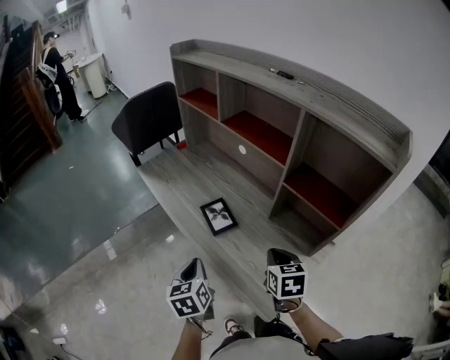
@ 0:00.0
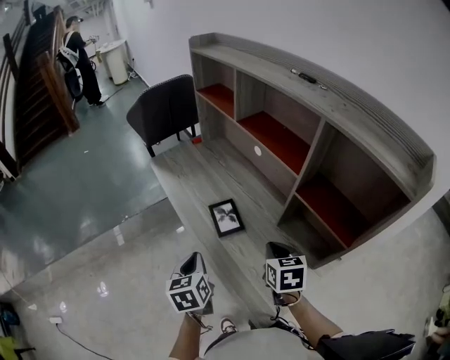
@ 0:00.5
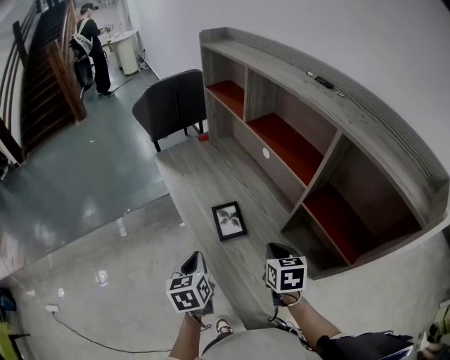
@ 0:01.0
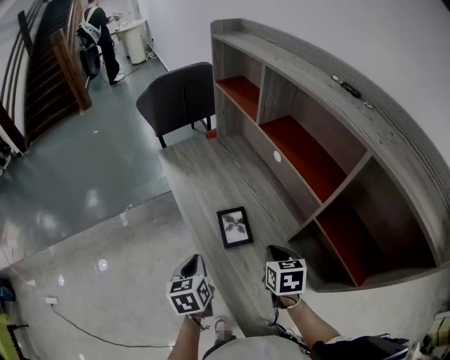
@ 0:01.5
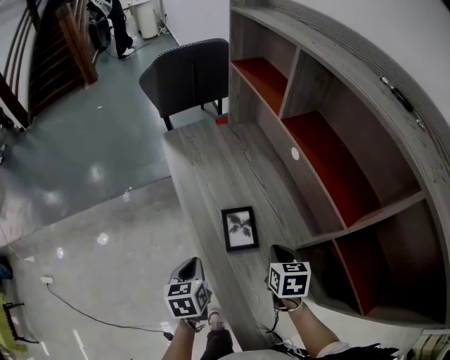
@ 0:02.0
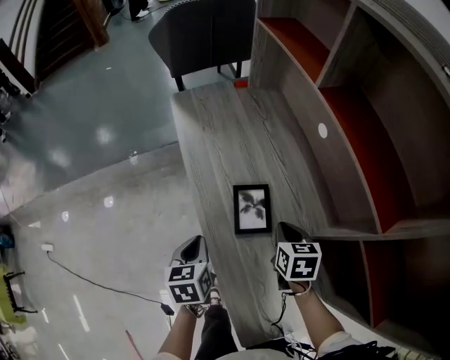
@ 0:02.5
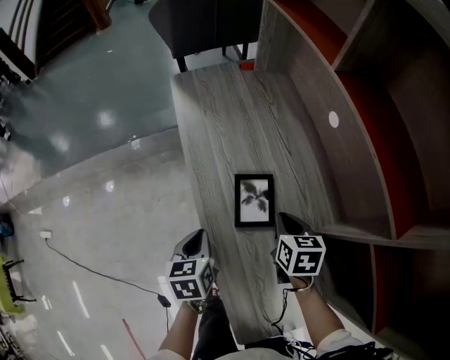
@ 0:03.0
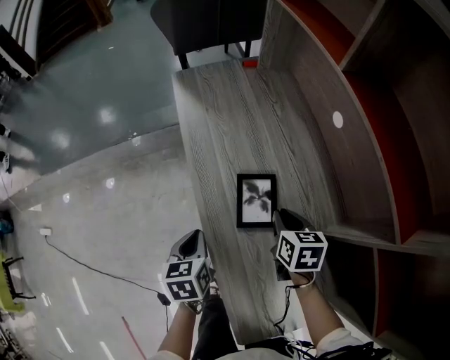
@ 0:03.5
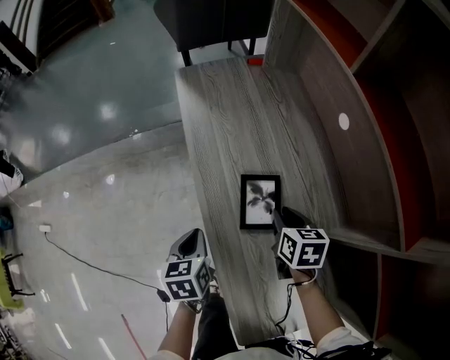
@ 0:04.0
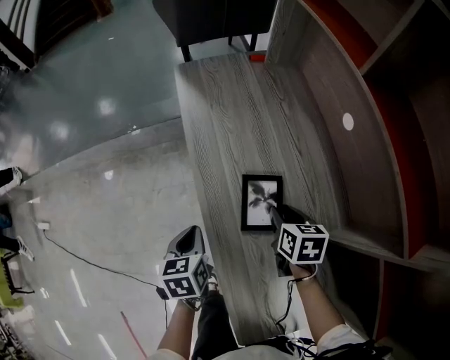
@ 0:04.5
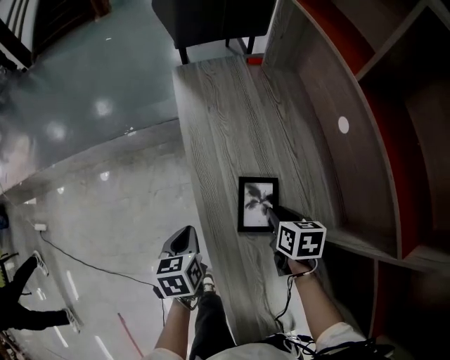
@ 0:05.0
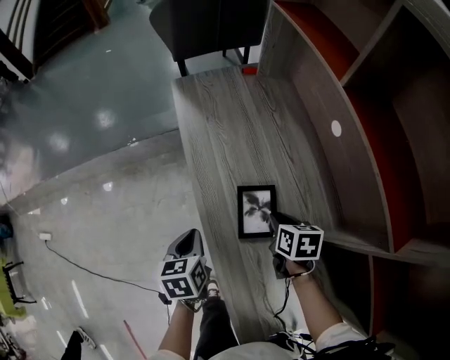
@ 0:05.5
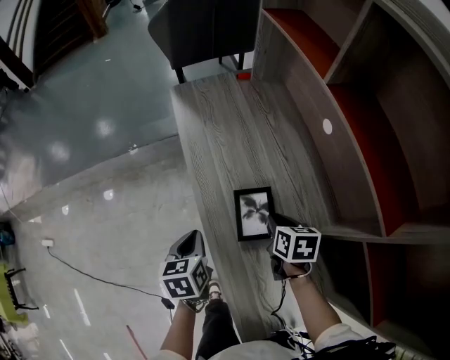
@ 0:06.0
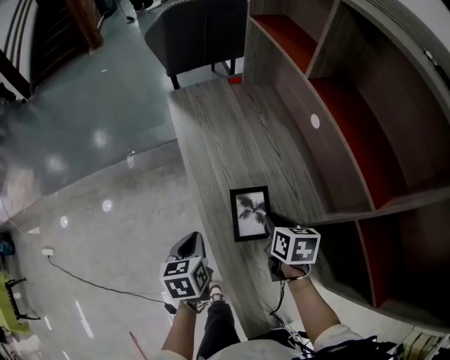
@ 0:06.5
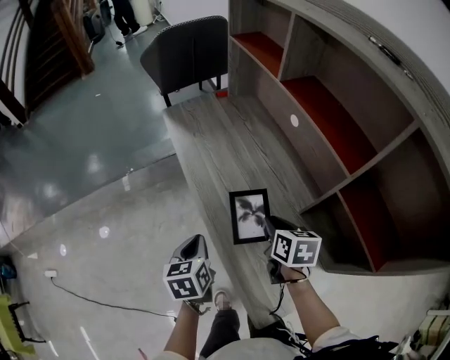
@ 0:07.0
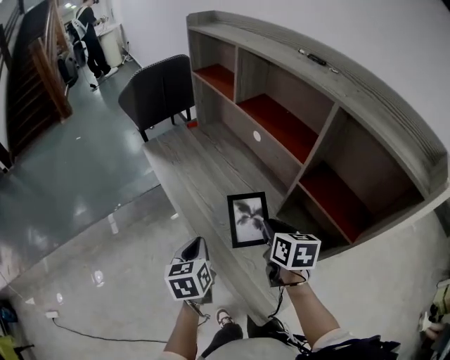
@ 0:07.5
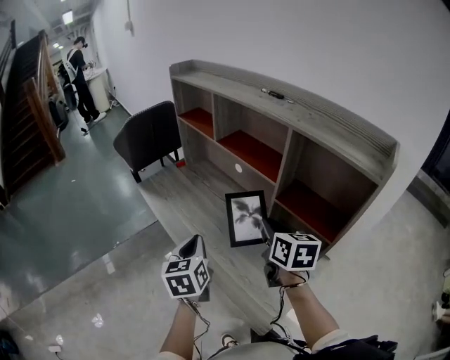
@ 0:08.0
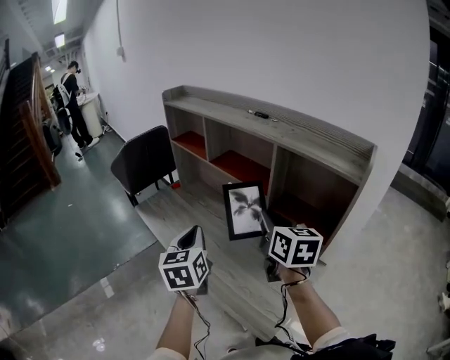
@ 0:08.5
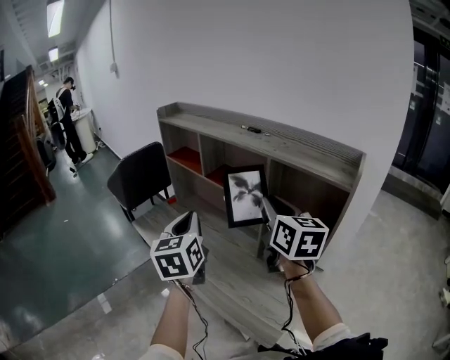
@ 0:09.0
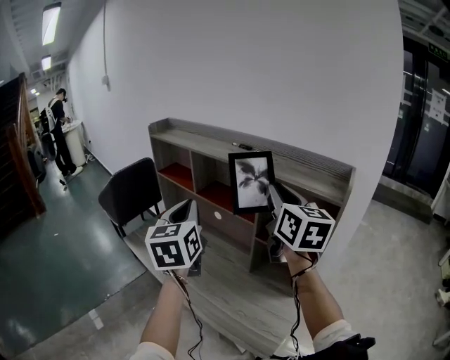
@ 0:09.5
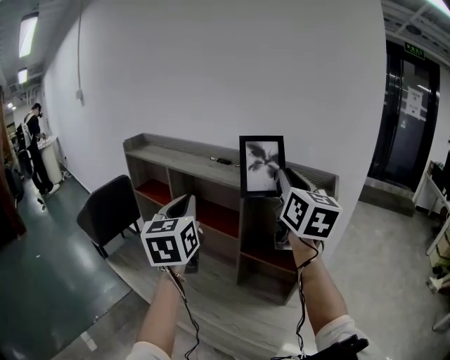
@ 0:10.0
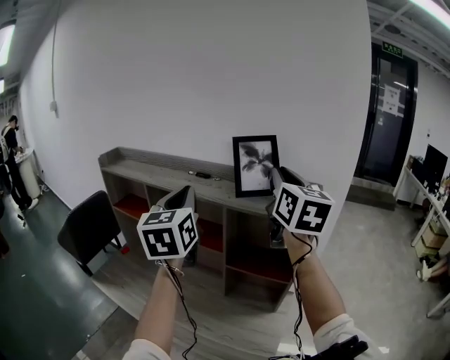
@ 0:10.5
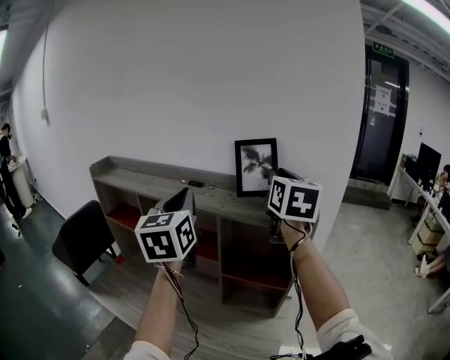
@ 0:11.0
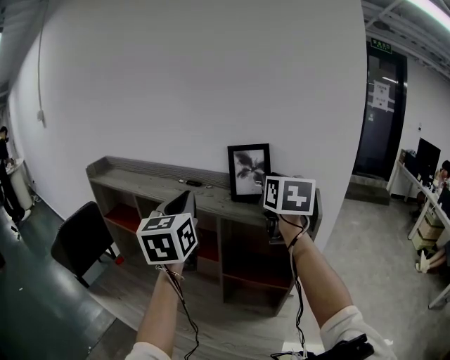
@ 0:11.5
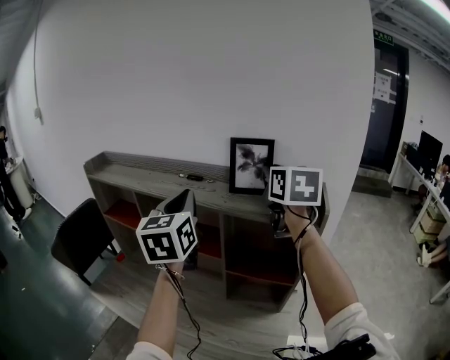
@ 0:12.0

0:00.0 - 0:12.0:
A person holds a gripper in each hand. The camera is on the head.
0:00.0 - 0:02.0: The left gripper moves forward and downward, roughly 15 cm, while the right gripper goes roughly 20 cm forward and downward.
0:02.0 - 0:04.0: The right gripper travels downward and forward by roughly 10 cm. The left gripper is displaced downward by roughly 5 cm.
0:04.0 - 0:06.0: The grippers stay close to where they were, moving slightly.
0:06.0 - 0:08.0: Both grippers move upward, roughly 25 cm. The right gripper rotates some 40 degrees. Meanwhile the left gripper rotates approximately 40 degrees.
0:08.0 - 0:10.0: The left gripper travels upward and forward by approximately 30 cm, and swivels about 30 degrees; the right gripper moves upward, roughly 35 cm, and points its fingers approximately 30 degrees further upward.
0:10.0 - 0:12.0: The two grippers go roughly 10 cm forward. The right gripper changes its angle by approximately 20 degrees.

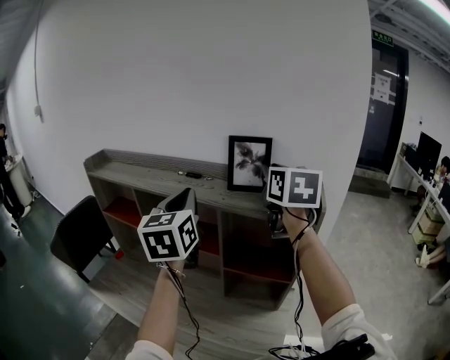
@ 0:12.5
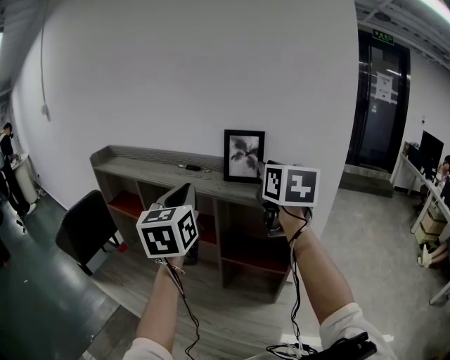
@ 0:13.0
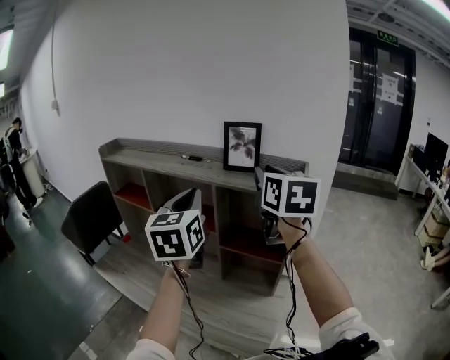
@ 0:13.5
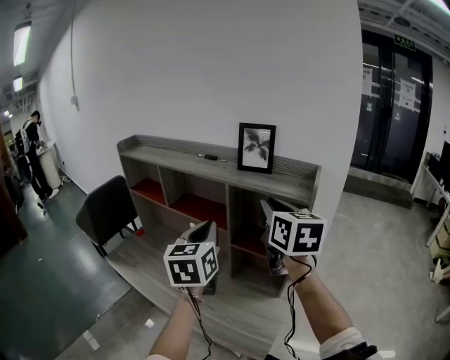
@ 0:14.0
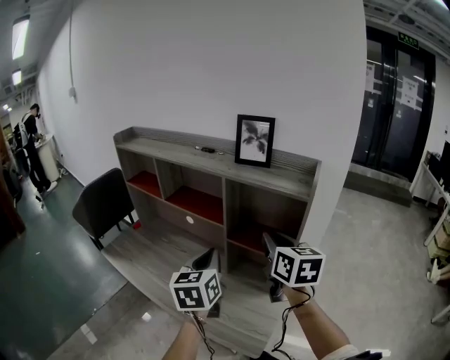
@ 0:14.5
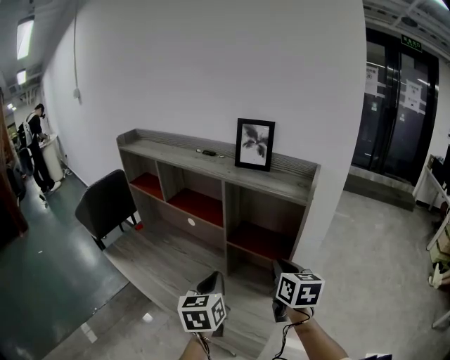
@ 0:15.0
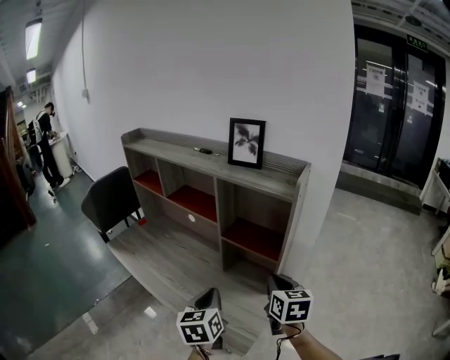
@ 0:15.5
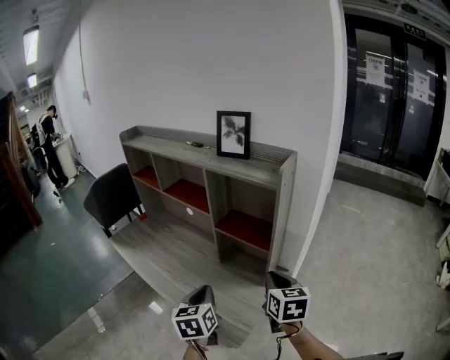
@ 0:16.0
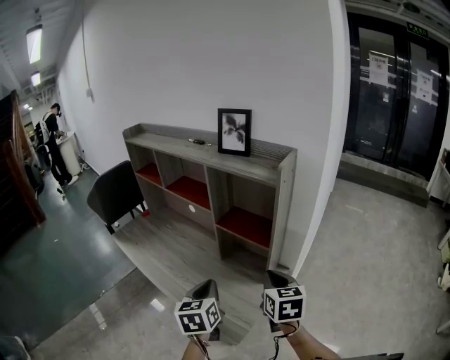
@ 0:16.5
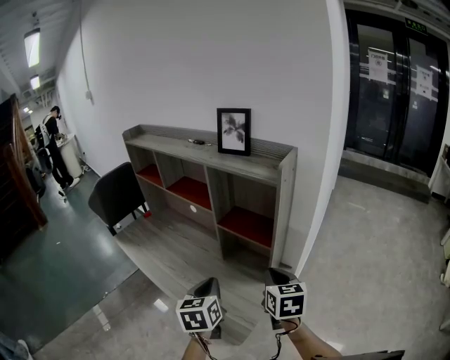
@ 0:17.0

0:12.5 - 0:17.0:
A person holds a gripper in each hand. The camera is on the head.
0:12.5 - 0:14.5: The grippers both shift downward and backward by approximately 25 cm.
0:14.5 - 0:17.0: The left gripper travels backward, downward and to the right by some 15 cm; the right gripper shifts approximately 20 cm downward, backward and to the right.

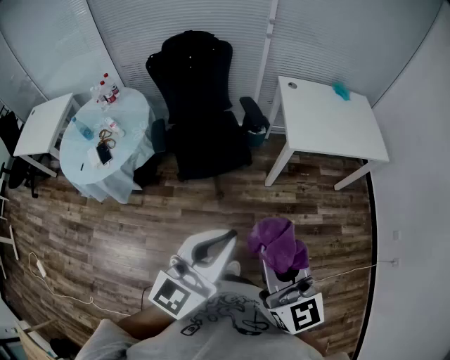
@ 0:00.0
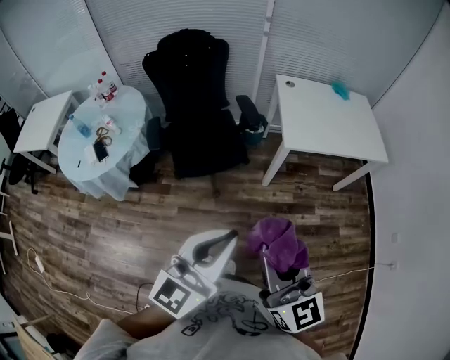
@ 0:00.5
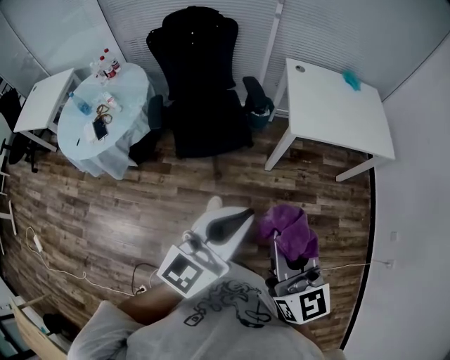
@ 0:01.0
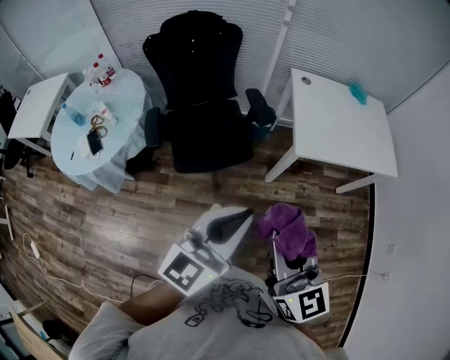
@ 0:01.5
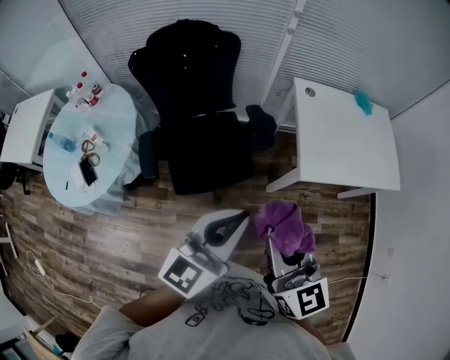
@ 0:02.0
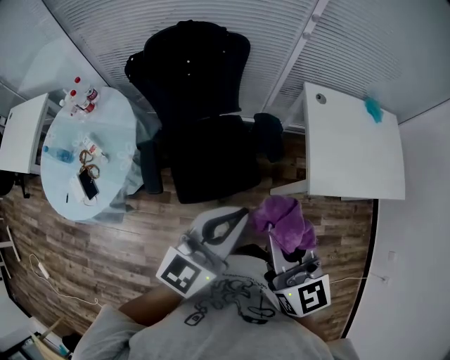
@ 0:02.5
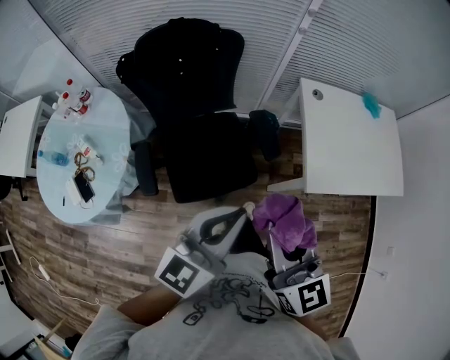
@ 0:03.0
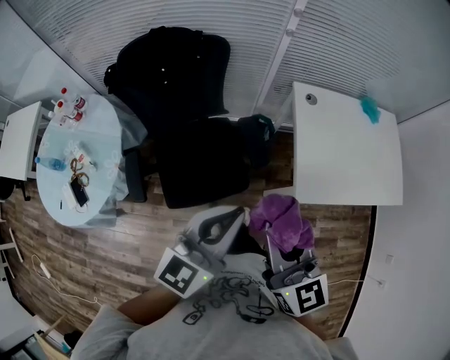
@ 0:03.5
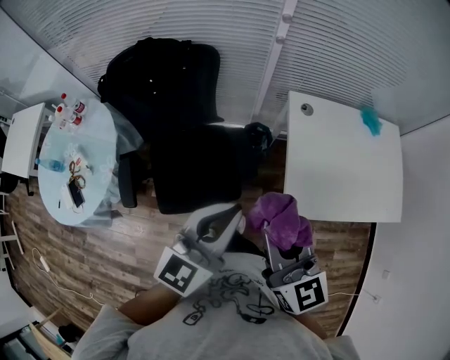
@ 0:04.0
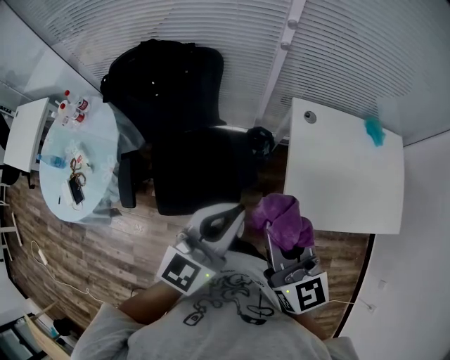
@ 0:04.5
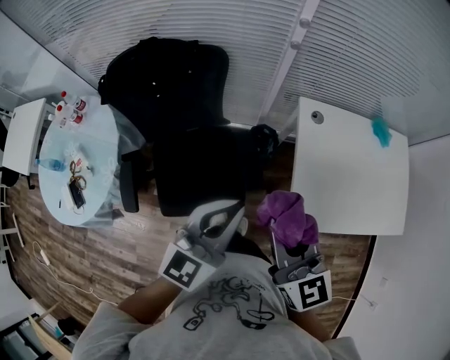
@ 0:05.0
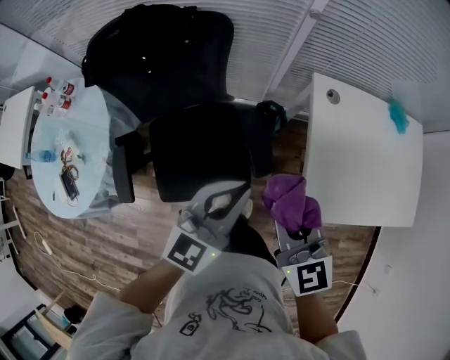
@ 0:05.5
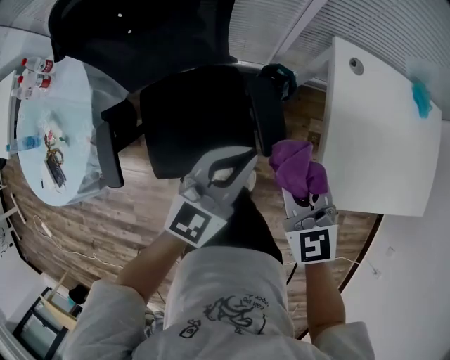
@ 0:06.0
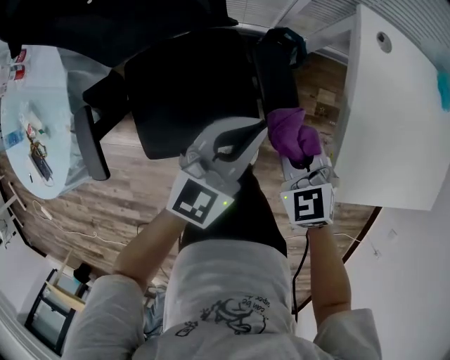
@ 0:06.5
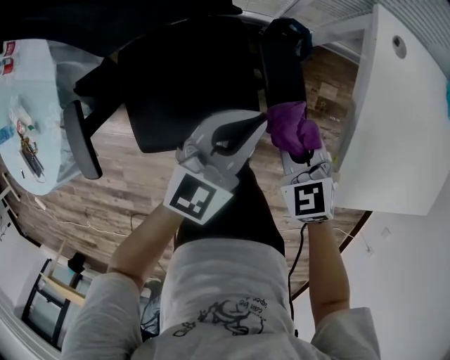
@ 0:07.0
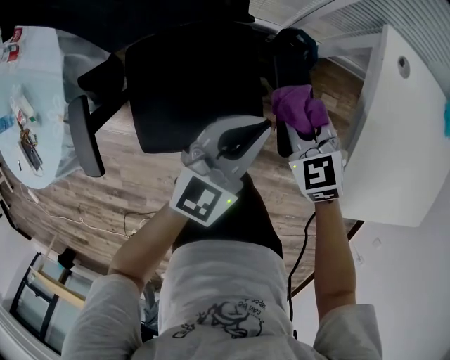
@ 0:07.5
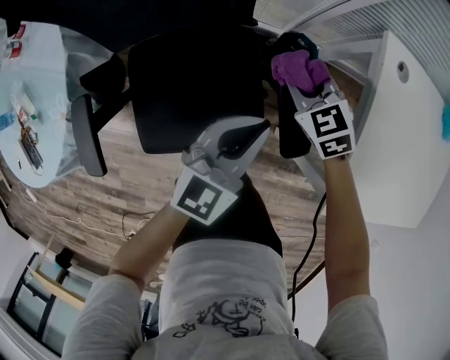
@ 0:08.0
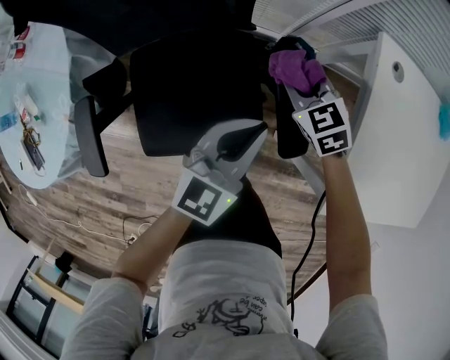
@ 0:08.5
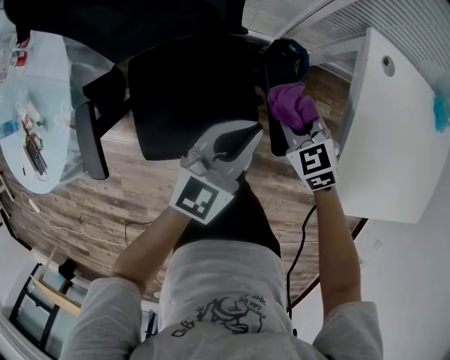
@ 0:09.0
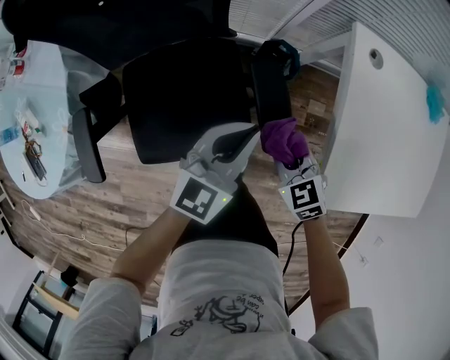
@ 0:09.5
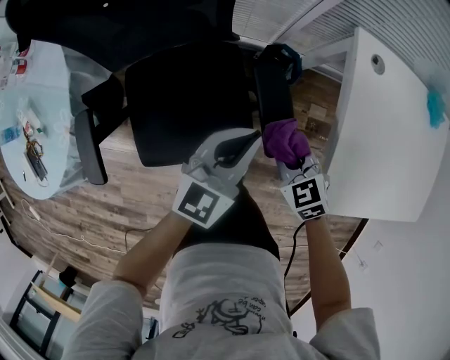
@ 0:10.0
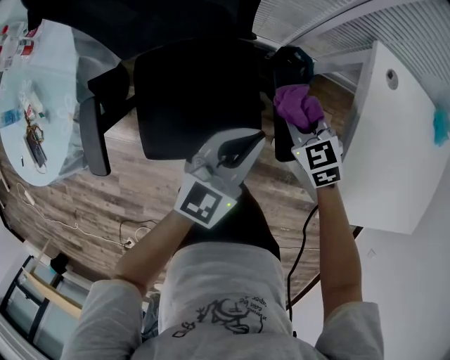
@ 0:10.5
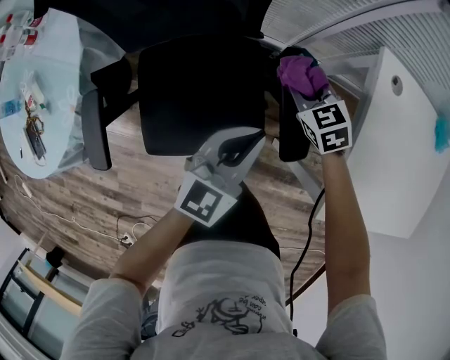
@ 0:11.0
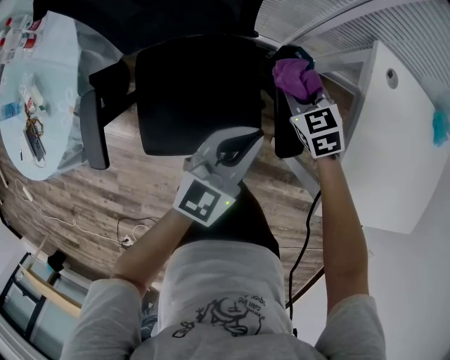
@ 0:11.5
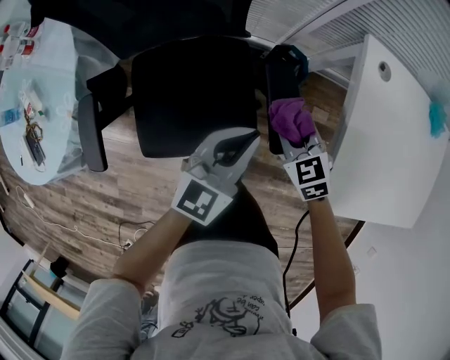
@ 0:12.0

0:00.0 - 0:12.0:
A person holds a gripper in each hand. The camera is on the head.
0:00.0 - 0:02.0: Both grippers travel together forward, about 35 cm.
0:02.0 - 0:04.0: Both grippers move forward, about 25 cm.
0:04.0 - 0:06.0: Both grippers move downward and forward, some 30 cm. The right gripper swivels about 30 degrees.
0:06.0 - 0:08.0: The right gripper moves downward and forward, roughly 30 cm, and changes its angle by about 20 degrees; the left gripper shifts some 15 cm downward and forward.
0:08.0 - 0:10.0: The right gripper goes roughly 15 cm backward.
0:10.0 - 0:12.0: The right gripper reaches roughly 15 cm forward, then returns.
